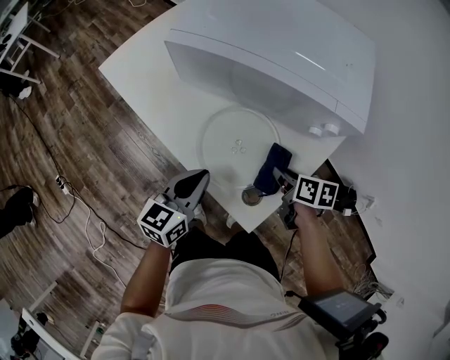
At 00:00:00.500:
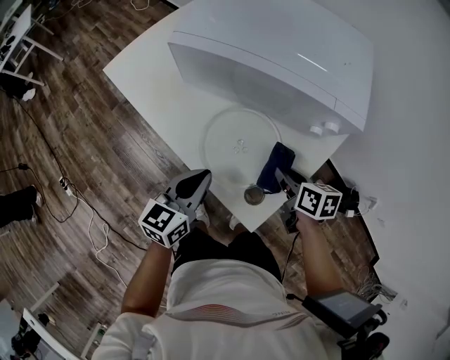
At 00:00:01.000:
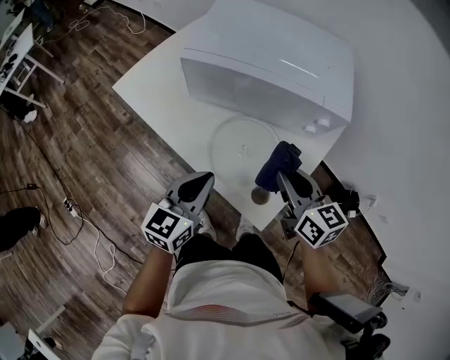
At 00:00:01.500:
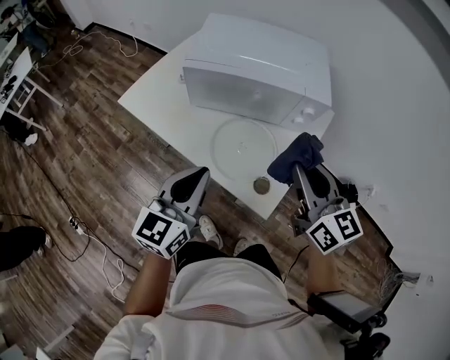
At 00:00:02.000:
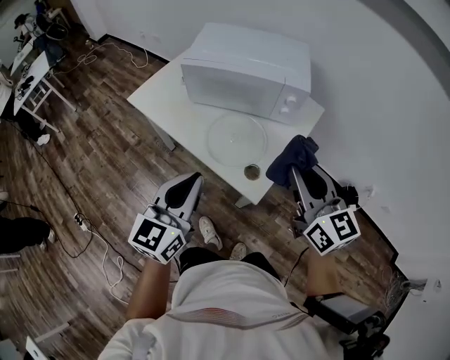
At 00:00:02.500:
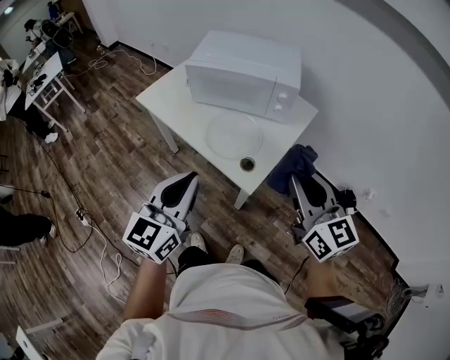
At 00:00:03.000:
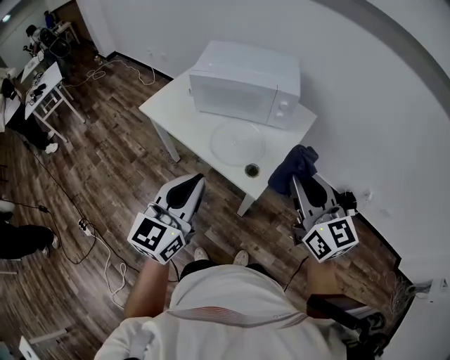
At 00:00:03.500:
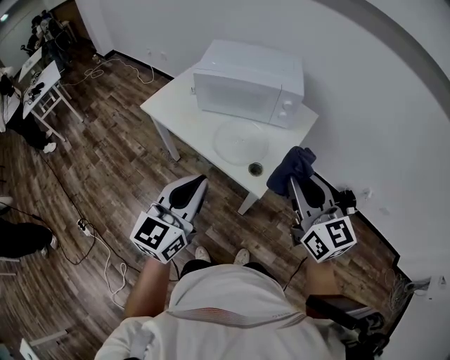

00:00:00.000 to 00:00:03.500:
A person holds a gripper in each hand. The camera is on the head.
00:00:00.000 to 00:00:02.000: Both grippers move upward and backward, approximately 35 cm. The right gripper points its fingers about 50 degrees further upward. Meanwhile the left gripper changes its angle by roughly 20 degrees.
00:00:02.000 to 00:00:03.500: Both grippers travel together backward, some 10 cm.

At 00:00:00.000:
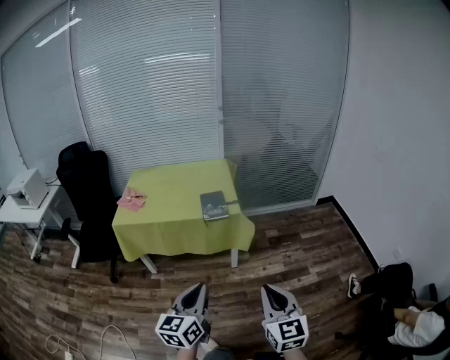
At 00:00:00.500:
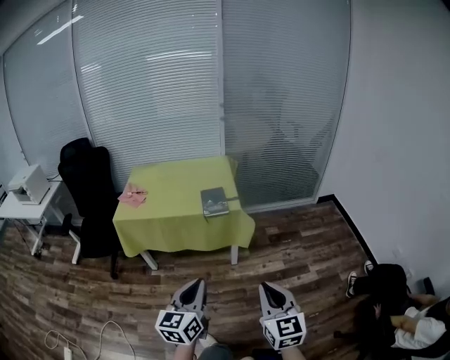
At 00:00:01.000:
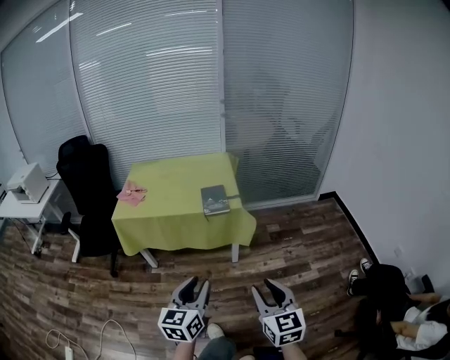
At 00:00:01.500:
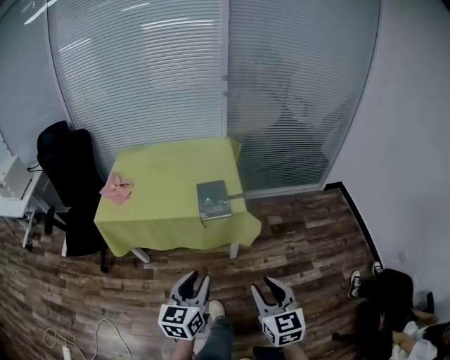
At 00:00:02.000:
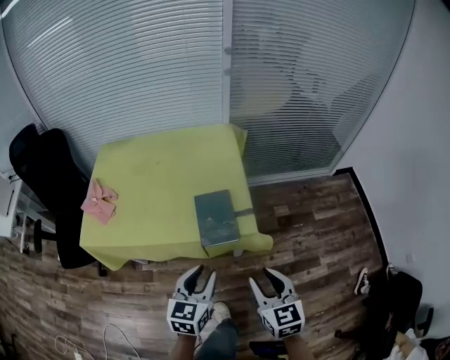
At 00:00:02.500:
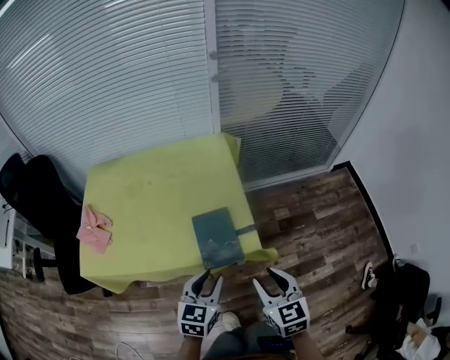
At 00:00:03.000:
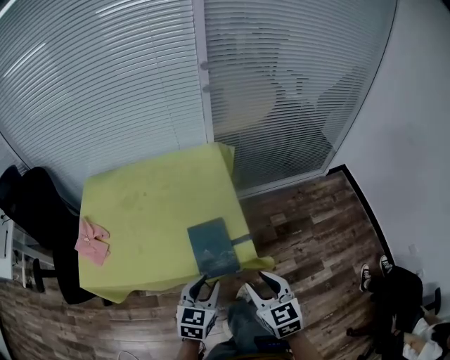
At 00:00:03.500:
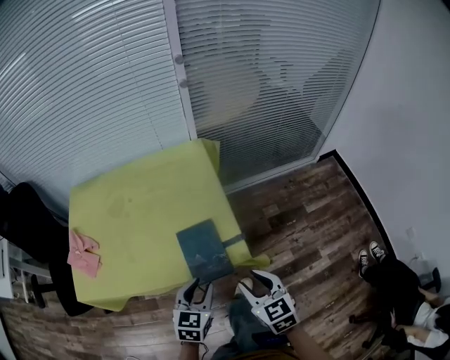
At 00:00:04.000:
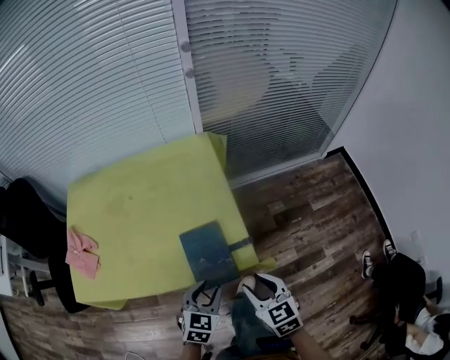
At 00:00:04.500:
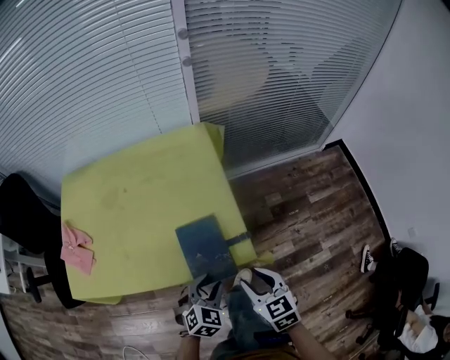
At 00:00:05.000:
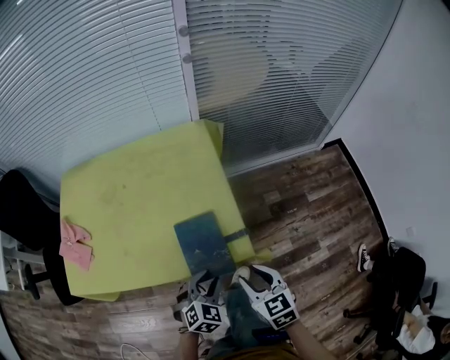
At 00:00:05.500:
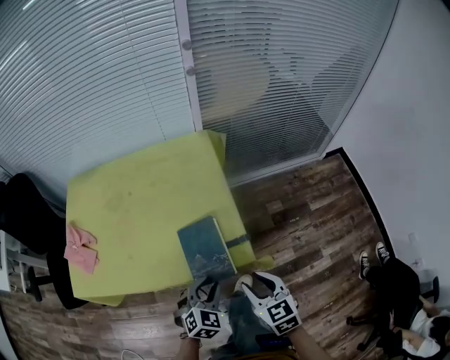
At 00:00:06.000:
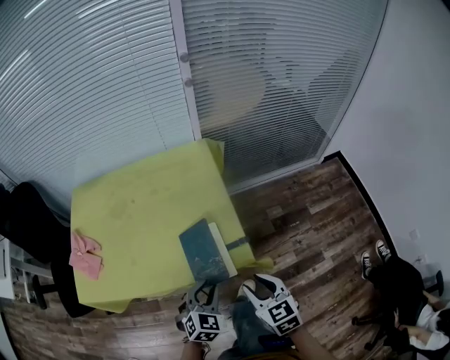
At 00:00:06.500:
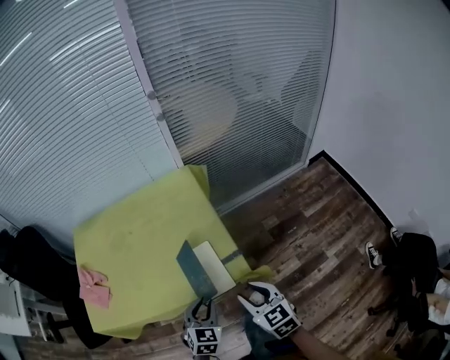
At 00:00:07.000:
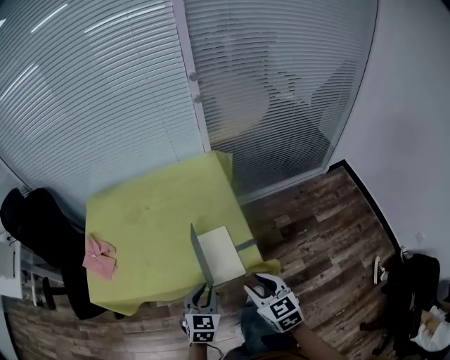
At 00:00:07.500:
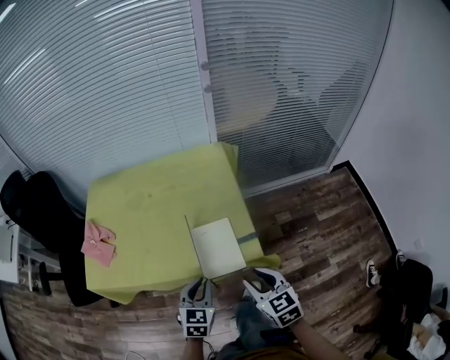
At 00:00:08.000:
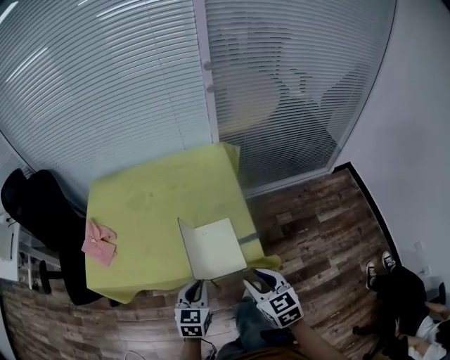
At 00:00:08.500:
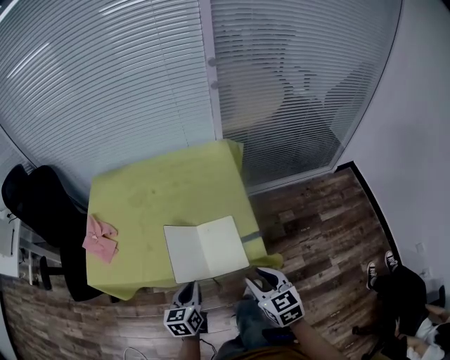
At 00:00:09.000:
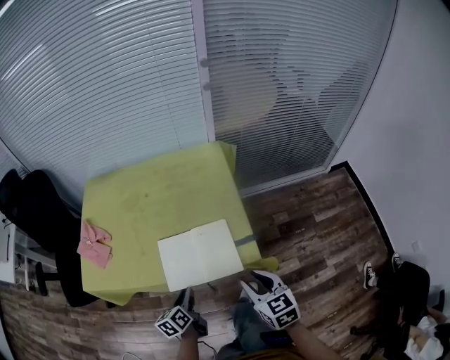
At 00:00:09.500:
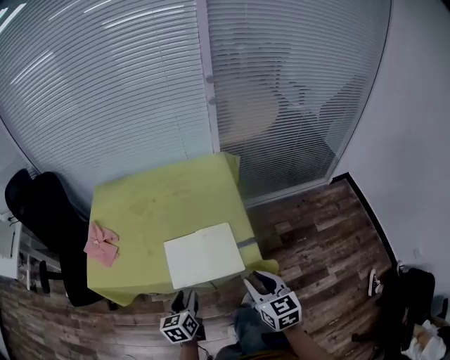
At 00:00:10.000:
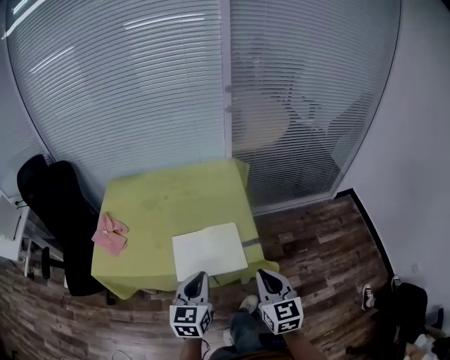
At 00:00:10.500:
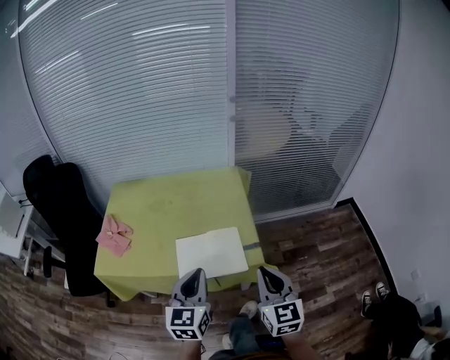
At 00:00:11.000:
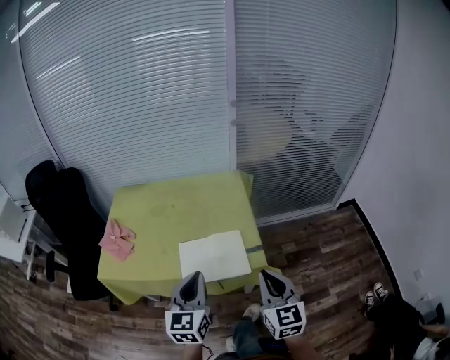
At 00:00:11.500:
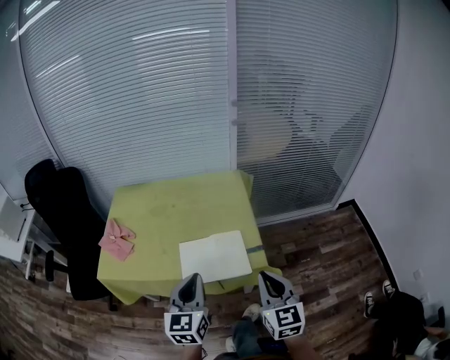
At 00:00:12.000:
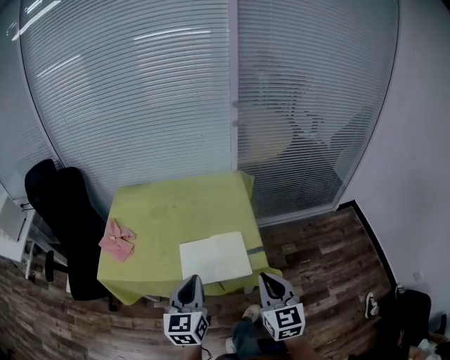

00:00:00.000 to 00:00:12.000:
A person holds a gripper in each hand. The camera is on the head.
00:00:00.000 to 00:00:02.000: The two grippers go roughly 40 cm forward. The left gripper turns by roughly 20 degrees, and opens, while the right gripper swivels approximately 20 degrees, and opens.
00:00:02.000 to 00:00:04.000: Both grippers travel together forward and downward, approximately 15 cm. The left gripper swivels about 20 degrees.
00:00:06.000 to 00:00:08.000: The left gripper is displaced to the left by some 5 cm, and changes its angle by about 30 degrees.
00:00:08.000 to 00:00:10.000: Both grippers travel together upward, some 10 cm. The right gripper closes up, while the left gripper opens, then closes again.
00:00:10.000 to 00:00:12.000: The left gripper heads upward, covering approximately 5 cm.

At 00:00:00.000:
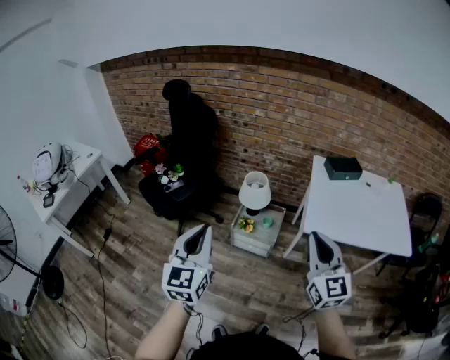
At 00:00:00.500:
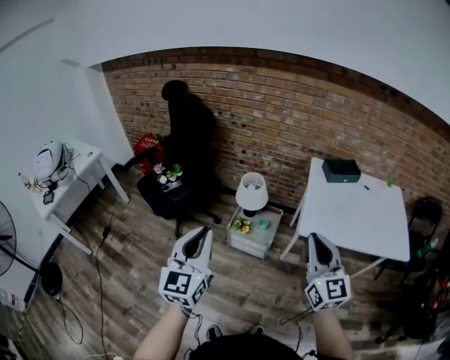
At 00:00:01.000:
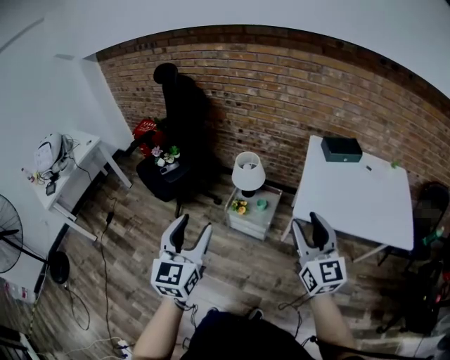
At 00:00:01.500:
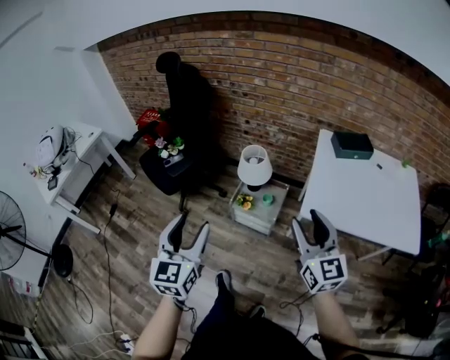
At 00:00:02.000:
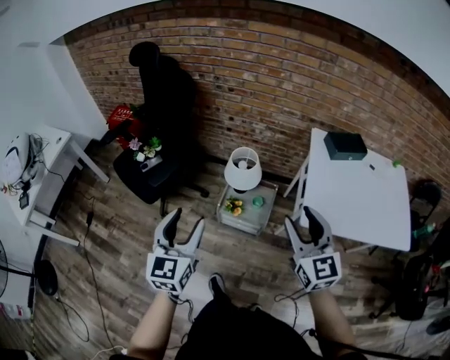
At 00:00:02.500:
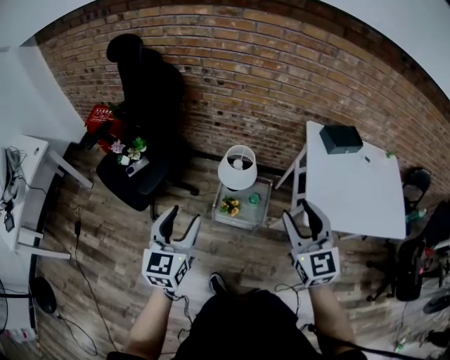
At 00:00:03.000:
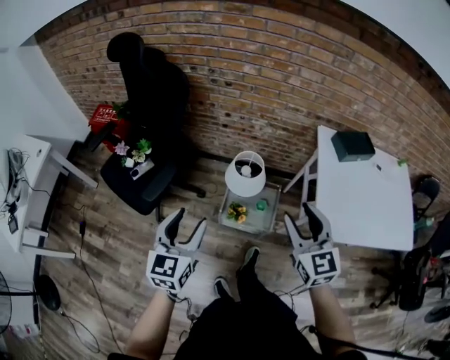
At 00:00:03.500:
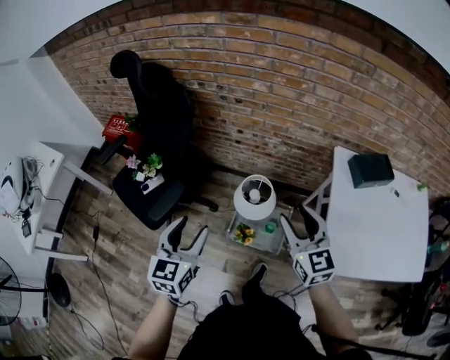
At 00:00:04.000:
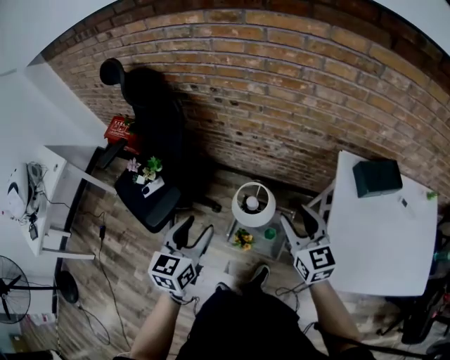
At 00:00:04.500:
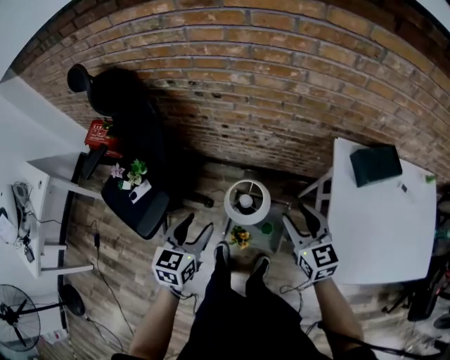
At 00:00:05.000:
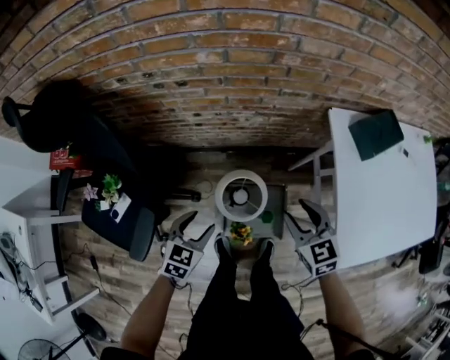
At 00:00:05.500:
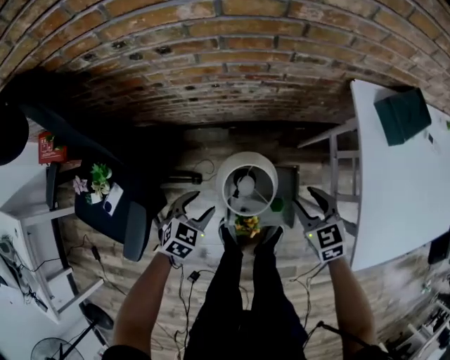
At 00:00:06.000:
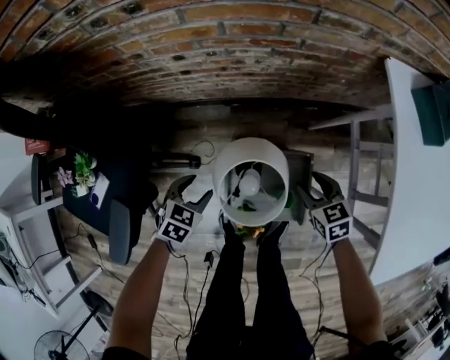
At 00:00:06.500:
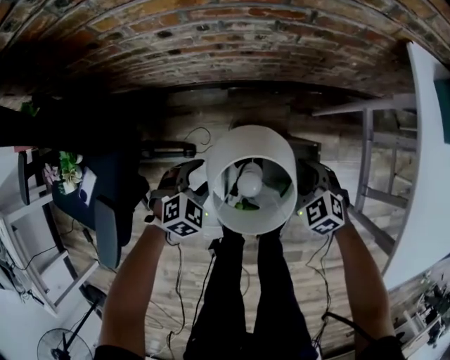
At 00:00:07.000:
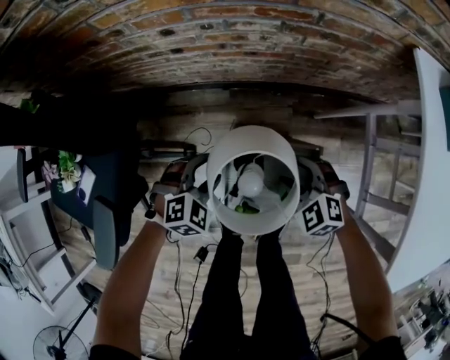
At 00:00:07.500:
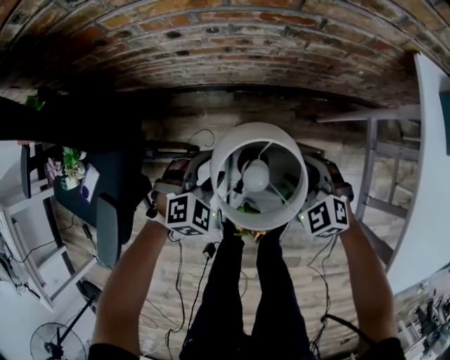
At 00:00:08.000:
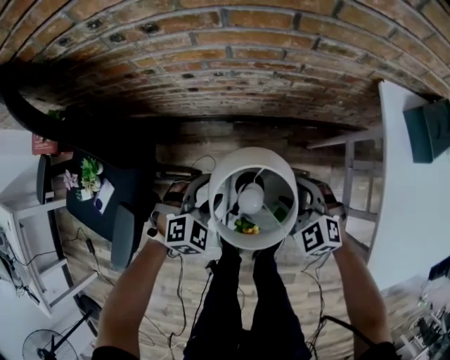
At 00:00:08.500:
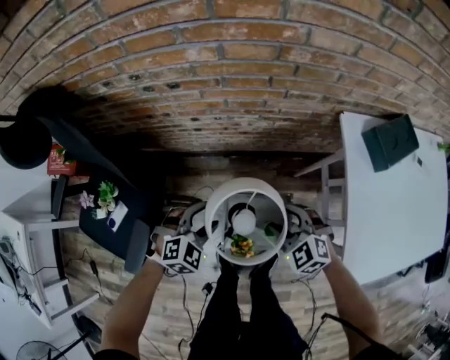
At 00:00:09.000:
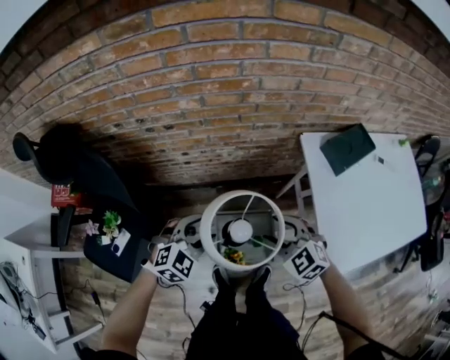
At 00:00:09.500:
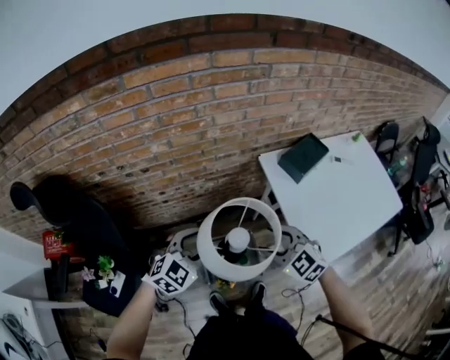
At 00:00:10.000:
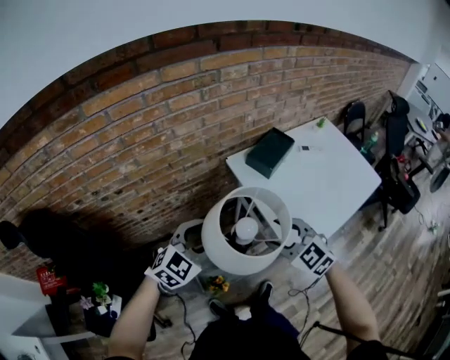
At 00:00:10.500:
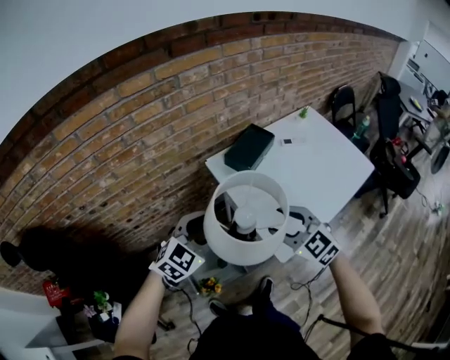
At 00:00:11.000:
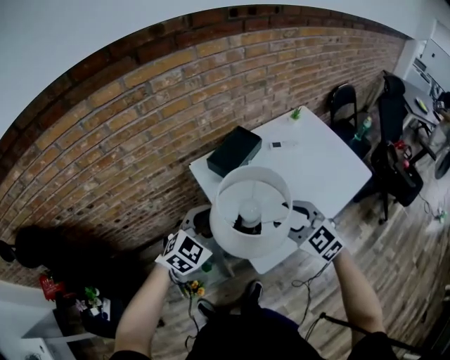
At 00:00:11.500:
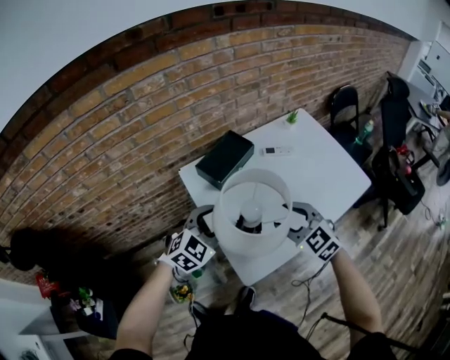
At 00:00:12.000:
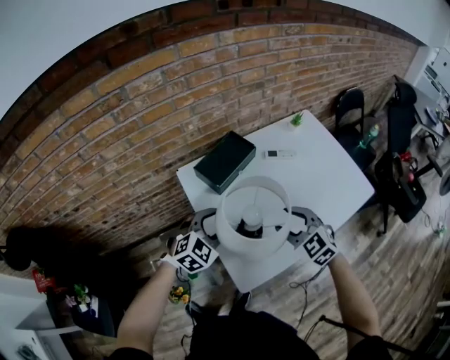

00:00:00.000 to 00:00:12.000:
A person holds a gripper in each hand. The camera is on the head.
00:00:00.000 to 00:00:02.000: The left gripper goes about 20 cm forward and downward, and opens its fingers; the right gripper shifts roughly 15 cm forward, and opens its fingers.
00:00:02.000 to 00:00:04.000: The grippers both shift forward by about 30 cm.
00:00:04.000 to 00:00:06.000: The grippers both shift downward by roughly 50 cm. The left gripper points its fingers roughly 30 degrees further downward; the right gripper points its fingers approximately 40 degrees further downward.
00:00:06.000 to 00:00:08.000: The left gripper moves upward, some 10 cm, and changes its angle by roughly 40 degrees; the right gripper travels to the left and upward by some 10 cm, and rolls counterclockwise, seen from behind, by about 40 degrees.
00:00:08.000 to 00:00:10.000: Both grippers travel together upward, roughly 40 cm. The right gripper turns by approximately 30 degrees; the left gripper changes its angle by roughly 40 degrees.
00:00:10.000 to 00:00:12.000: The two grippers go some 35 cm to the right and forward.
